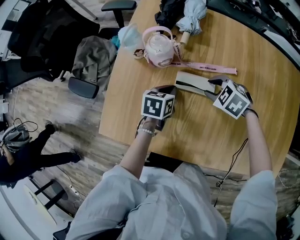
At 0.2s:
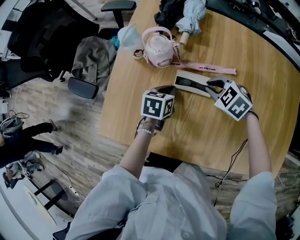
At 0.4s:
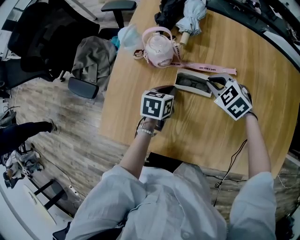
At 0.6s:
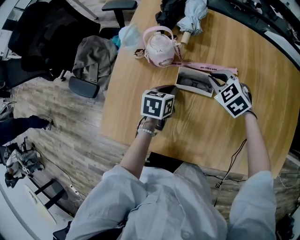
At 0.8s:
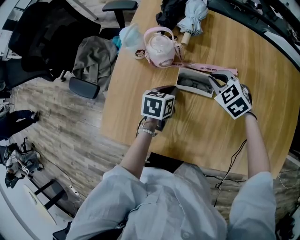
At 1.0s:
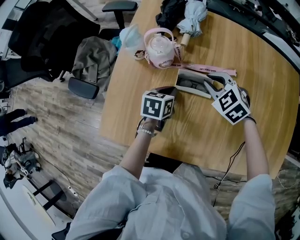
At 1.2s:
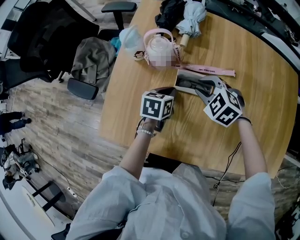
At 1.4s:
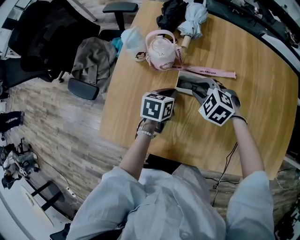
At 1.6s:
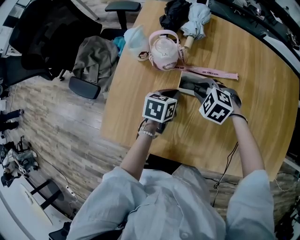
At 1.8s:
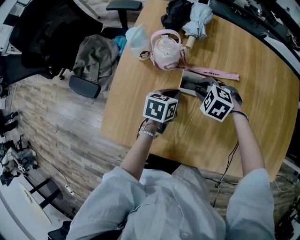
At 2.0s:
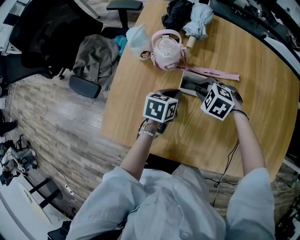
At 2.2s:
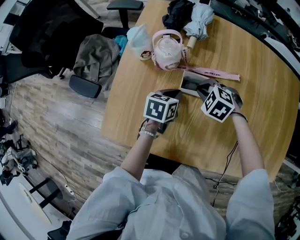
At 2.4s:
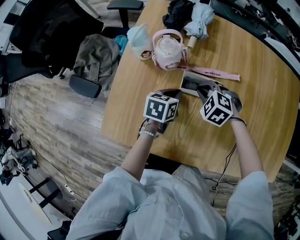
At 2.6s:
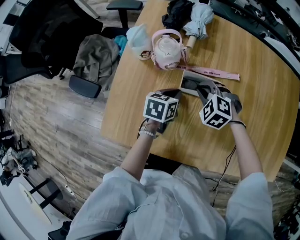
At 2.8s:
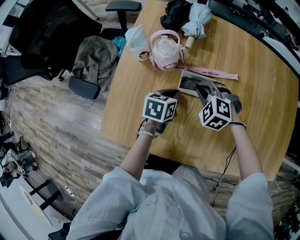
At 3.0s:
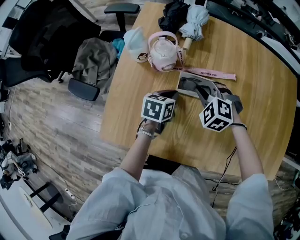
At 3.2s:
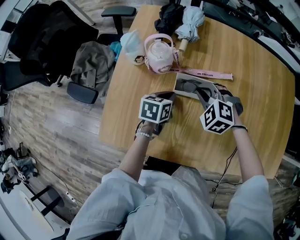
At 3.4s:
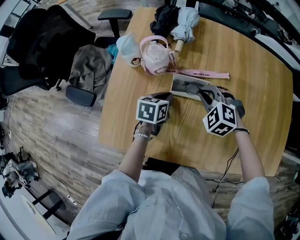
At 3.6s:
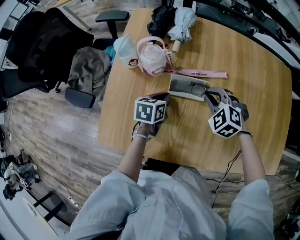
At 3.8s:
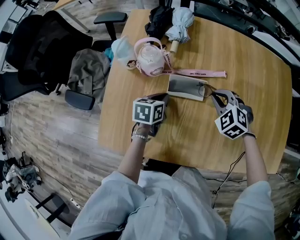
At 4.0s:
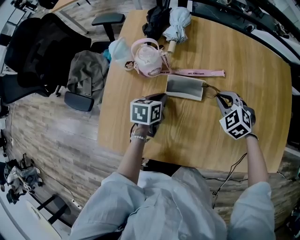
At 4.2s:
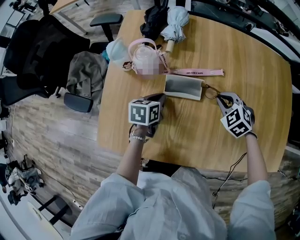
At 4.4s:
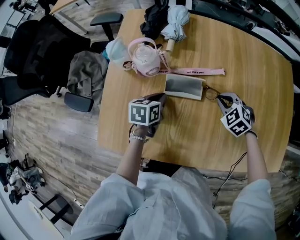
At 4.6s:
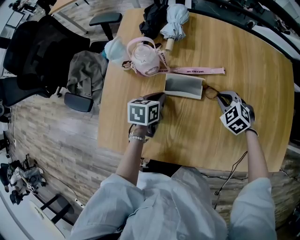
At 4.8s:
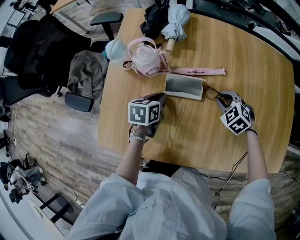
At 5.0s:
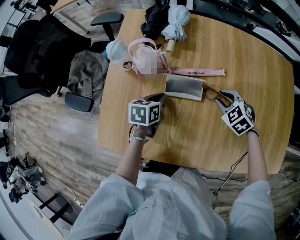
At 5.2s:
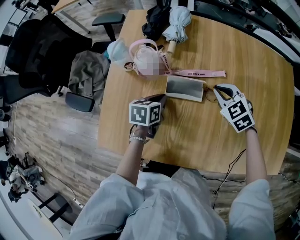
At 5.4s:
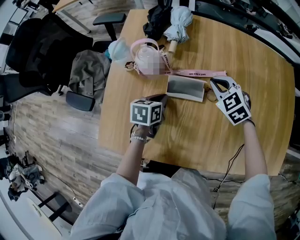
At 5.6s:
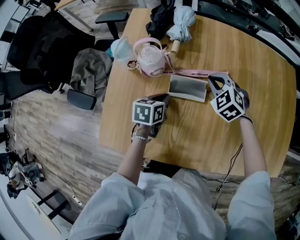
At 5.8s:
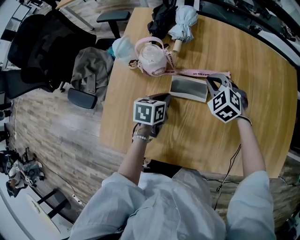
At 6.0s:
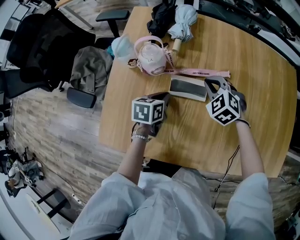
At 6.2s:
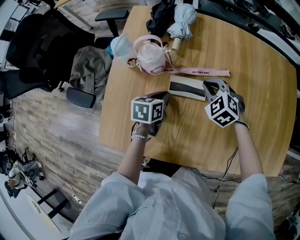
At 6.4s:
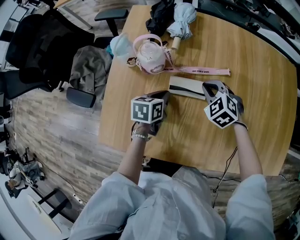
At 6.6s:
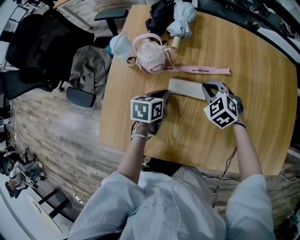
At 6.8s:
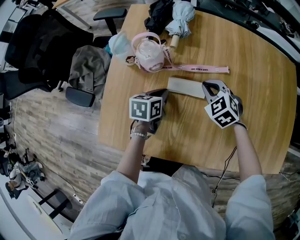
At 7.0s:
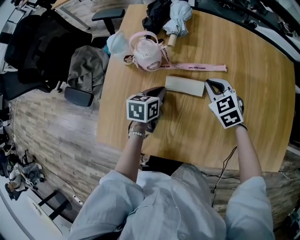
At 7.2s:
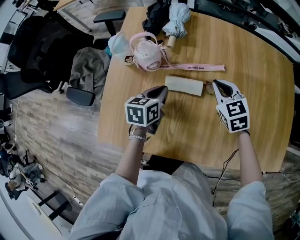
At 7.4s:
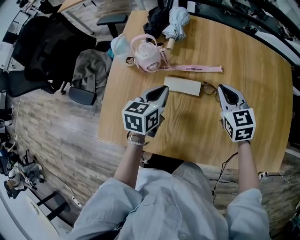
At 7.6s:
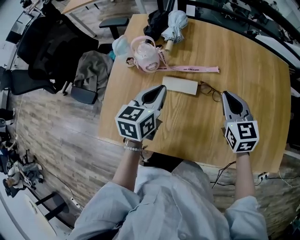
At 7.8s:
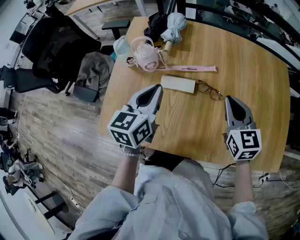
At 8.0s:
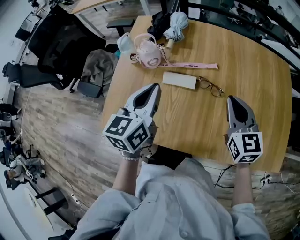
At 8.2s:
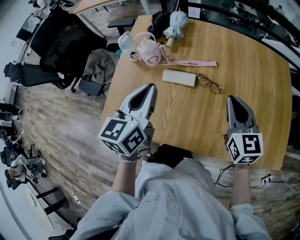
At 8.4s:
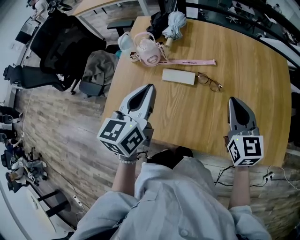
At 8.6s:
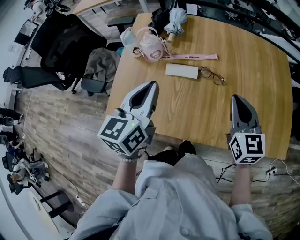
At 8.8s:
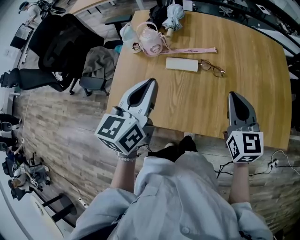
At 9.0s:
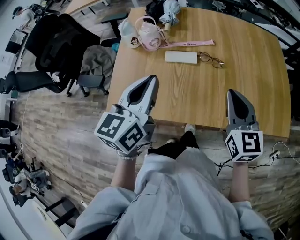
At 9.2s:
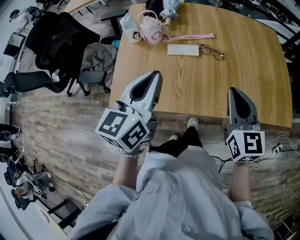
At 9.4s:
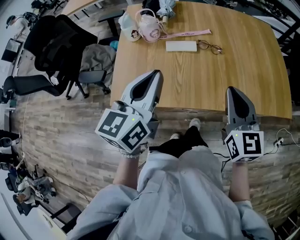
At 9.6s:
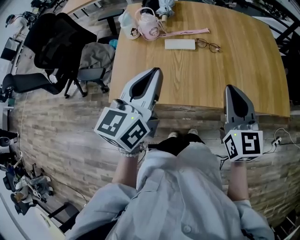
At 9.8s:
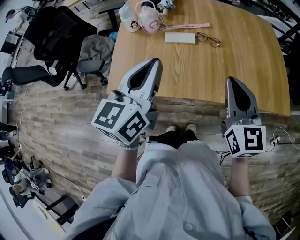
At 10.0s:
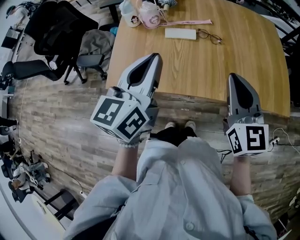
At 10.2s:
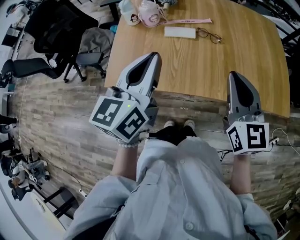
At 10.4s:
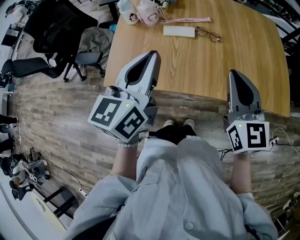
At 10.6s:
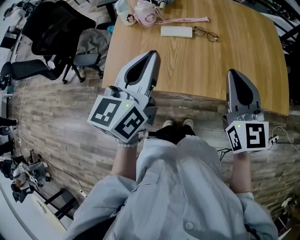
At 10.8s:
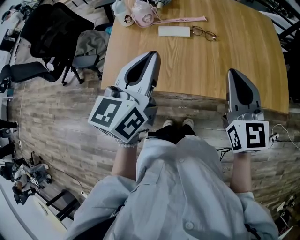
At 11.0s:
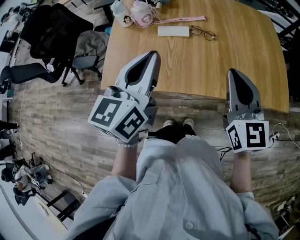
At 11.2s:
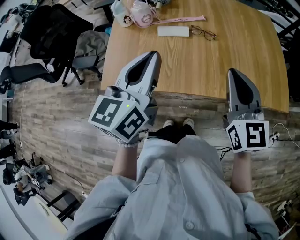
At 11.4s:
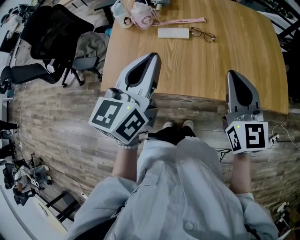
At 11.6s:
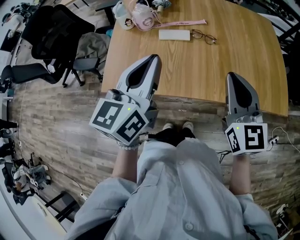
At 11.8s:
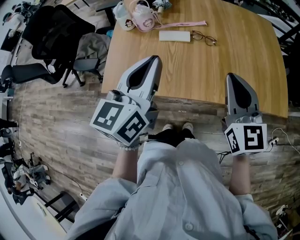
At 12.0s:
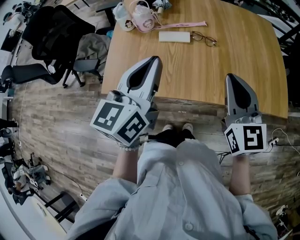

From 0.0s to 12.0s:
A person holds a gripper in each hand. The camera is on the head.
From 0.0s to 1.6s: The right gripper is displaced to the left by approximately 5 cm.
From 1.6s to 3.0s: The grippers move only a little.
From 3.0s to 4.4s: The right gripper shifts roughly 15 cm to the right, and swivels some 20 degrees.
From 4.4s to 6.0s: The right gripper goes roughly 10 cm to the left and forward.
From 6.0s to 7.6s: The left gripper shifts approximately 15 cm upward, and swivels some 30 degrees; the right gripper is displaced upward, to the right and backward by some 20 cm, and swivels roughly 50 degrees.
From 7.6s to 9.0s: The two grippers go roughly 20 cm backward and upward.
From 9.0s to 10.4s: Both grippers move backward, about 5 cm.
From 10.4s to 12.0s: The grippers move only a little.

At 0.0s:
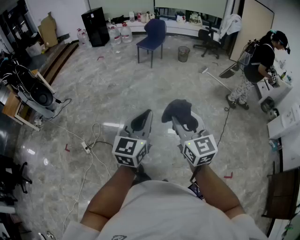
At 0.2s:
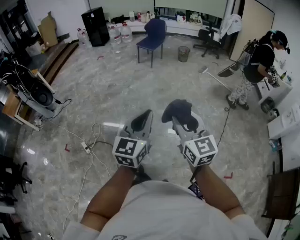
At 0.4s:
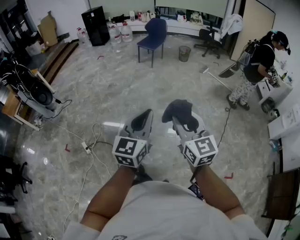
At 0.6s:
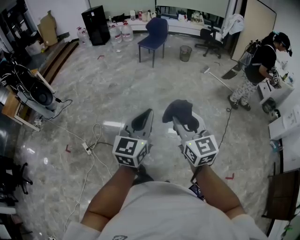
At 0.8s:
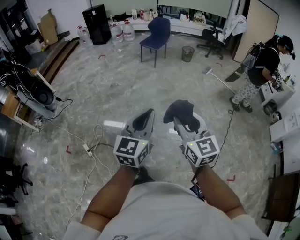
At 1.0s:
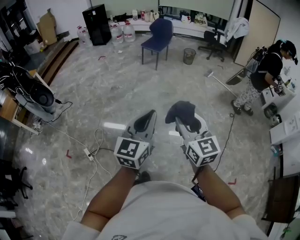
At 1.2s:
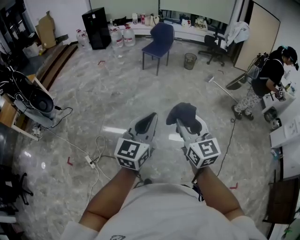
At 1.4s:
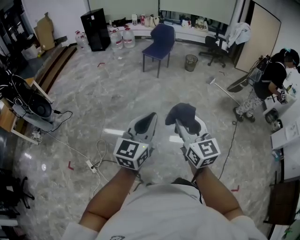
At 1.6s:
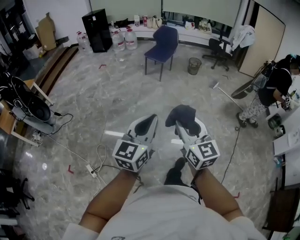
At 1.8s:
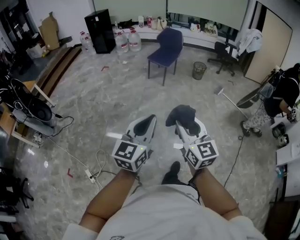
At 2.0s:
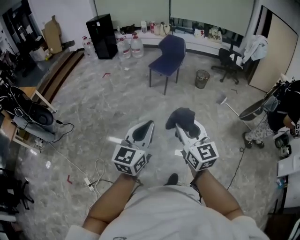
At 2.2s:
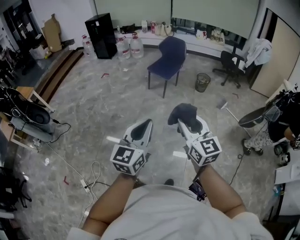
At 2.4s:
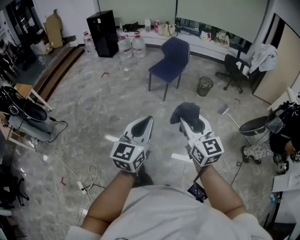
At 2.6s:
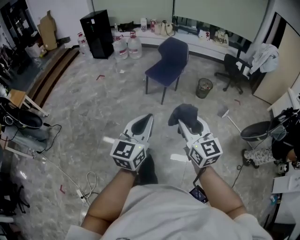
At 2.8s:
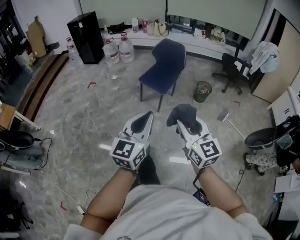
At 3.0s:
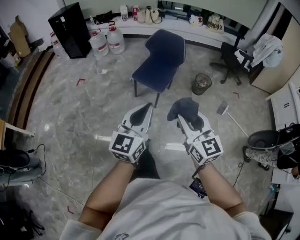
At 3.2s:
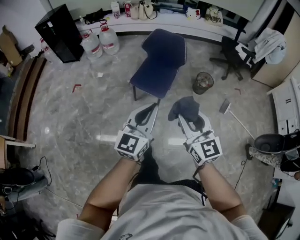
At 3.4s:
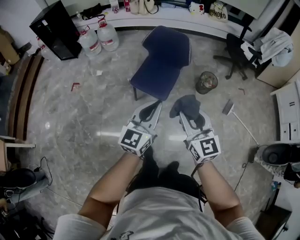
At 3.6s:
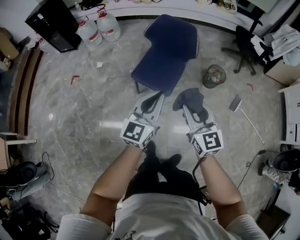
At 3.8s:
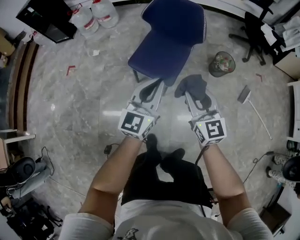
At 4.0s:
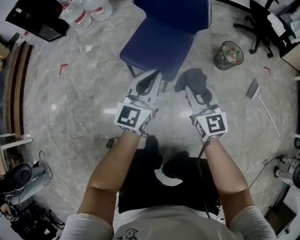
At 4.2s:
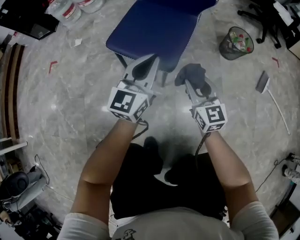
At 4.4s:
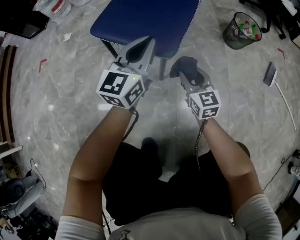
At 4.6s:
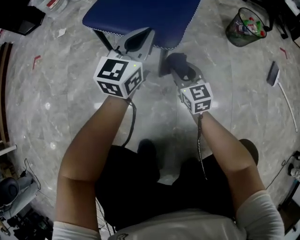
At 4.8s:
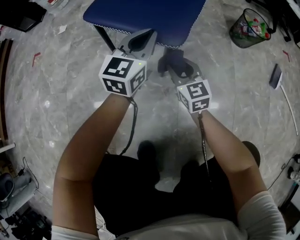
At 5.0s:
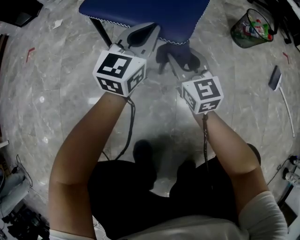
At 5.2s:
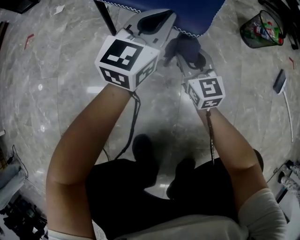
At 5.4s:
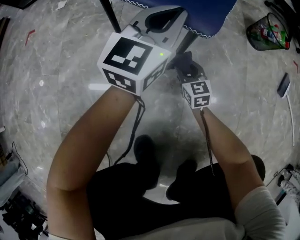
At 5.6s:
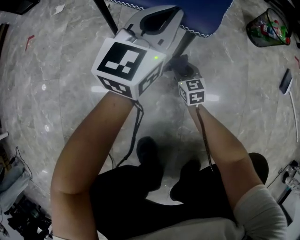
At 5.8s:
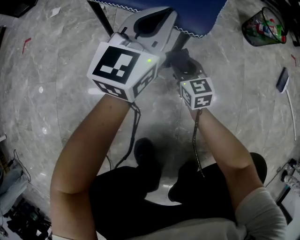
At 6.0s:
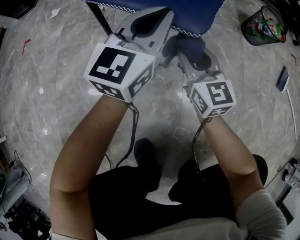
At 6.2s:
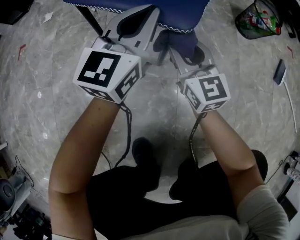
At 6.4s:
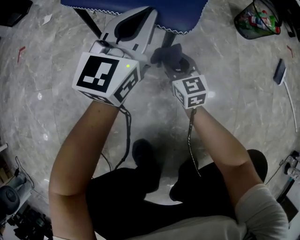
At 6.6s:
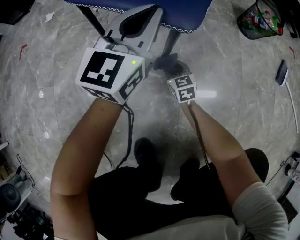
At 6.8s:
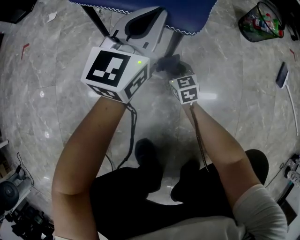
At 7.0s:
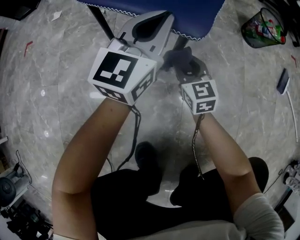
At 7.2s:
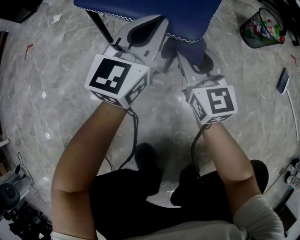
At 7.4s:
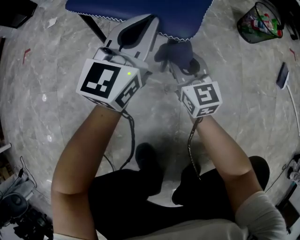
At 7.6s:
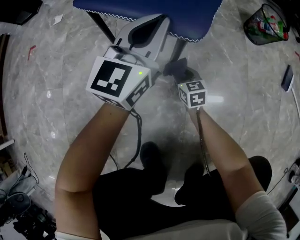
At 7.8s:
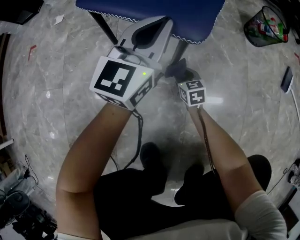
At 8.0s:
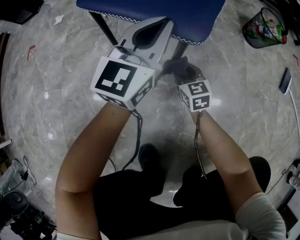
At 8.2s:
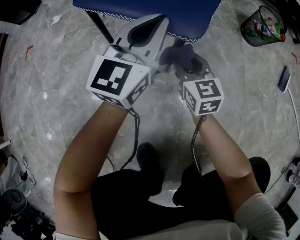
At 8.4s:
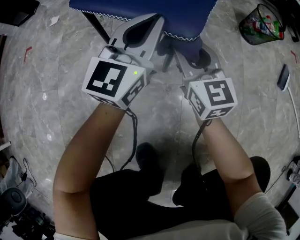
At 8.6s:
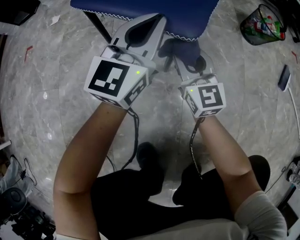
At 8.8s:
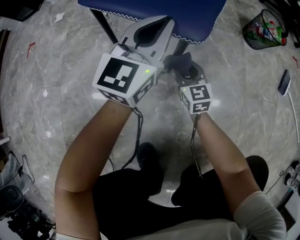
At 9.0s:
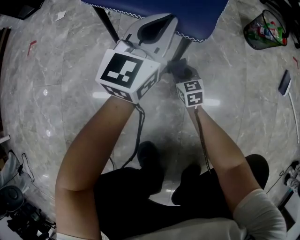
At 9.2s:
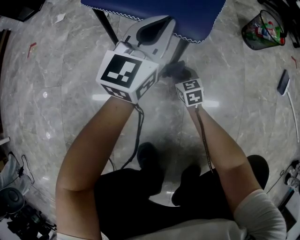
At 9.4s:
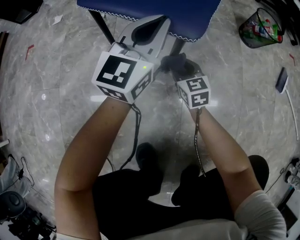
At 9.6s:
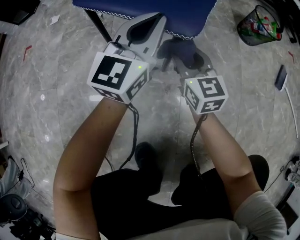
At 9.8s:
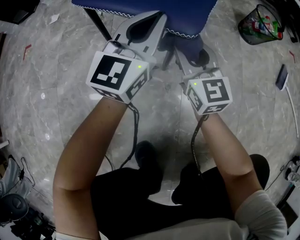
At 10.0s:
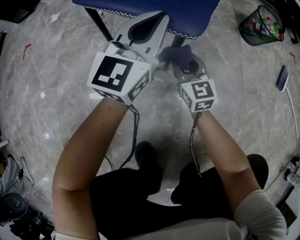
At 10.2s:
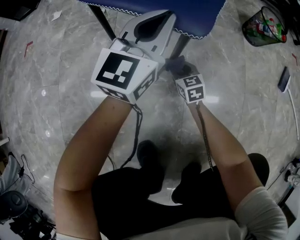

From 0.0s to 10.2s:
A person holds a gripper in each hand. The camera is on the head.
From 0.0s to 1.4s: The two grippers go some 30 cm forward and to the left.
From 1.4s to 3.0s: Both grippers are carried forward, approximately 1 m.
From 3.0s to 4.4s: Both grippers are carried forward, approximately 50 cm. The two grippers go roughly 70 cm downward.
From 4.4s to 5.8s: The right gripper moves up and down over some 30 cm, changing direction 3 times; the left gripper goes about 10 cm downward.
From 5.8s to 7.2s: The right gripper swings up and down, some 25 cm each way, with 2 reversals.
From 7.2s to 8.8s: The right gripper goes up and down, approximately 25 cm each way, reversing 2 times.
From 8.8s to 10.2s: The right gripper swings up and down, approximately 25 cm each way, with 2 reversals.

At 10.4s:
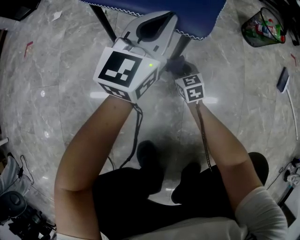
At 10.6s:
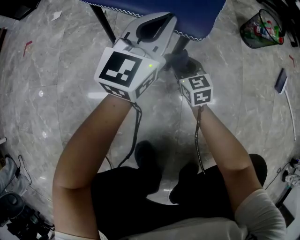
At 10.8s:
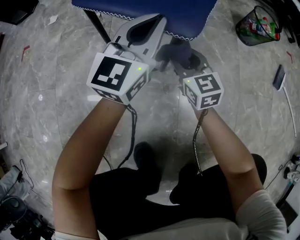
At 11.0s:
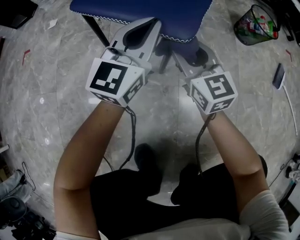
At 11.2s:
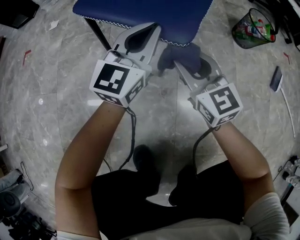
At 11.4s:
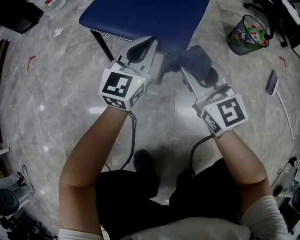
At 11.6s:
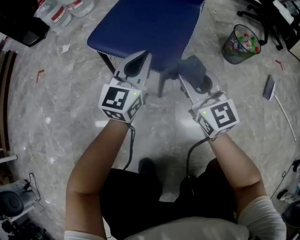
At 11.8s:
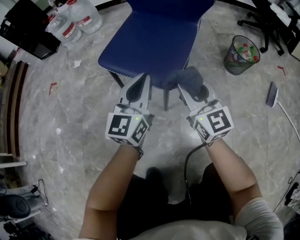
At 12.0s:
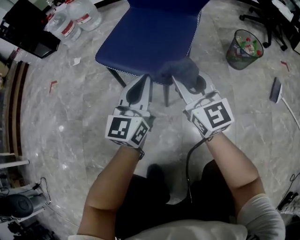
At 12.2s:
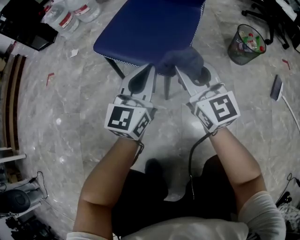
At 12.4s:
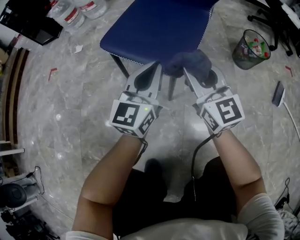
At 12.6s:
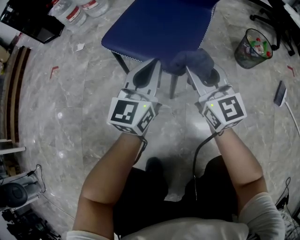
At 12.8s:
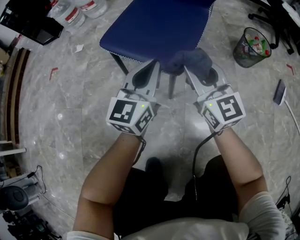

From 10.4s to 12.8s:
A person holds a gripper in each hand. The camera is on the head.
From 10.4s to 11.6s: The right gripper is displaced upward by approximately 35 cm, and angles its fingers upward, by approximately 30 degrees, while the left gripper shifts some 5 cm upward.
